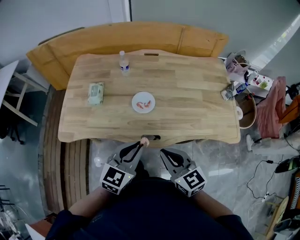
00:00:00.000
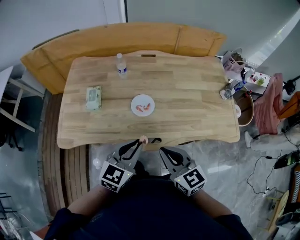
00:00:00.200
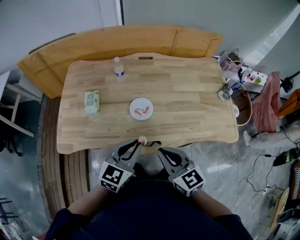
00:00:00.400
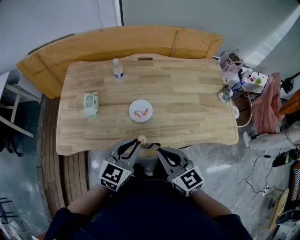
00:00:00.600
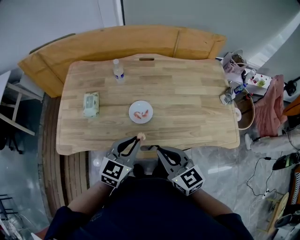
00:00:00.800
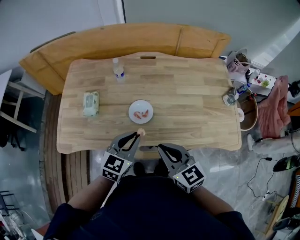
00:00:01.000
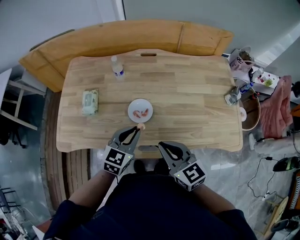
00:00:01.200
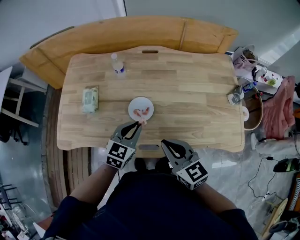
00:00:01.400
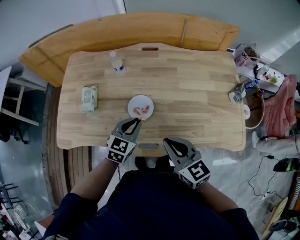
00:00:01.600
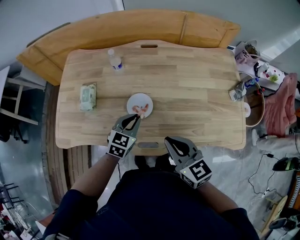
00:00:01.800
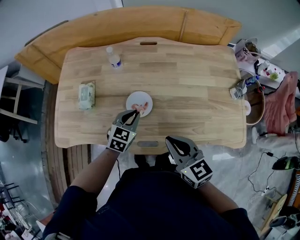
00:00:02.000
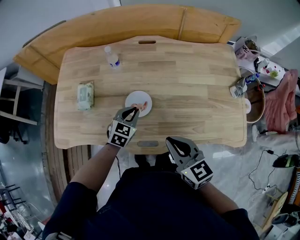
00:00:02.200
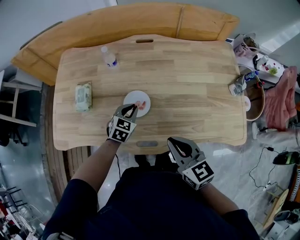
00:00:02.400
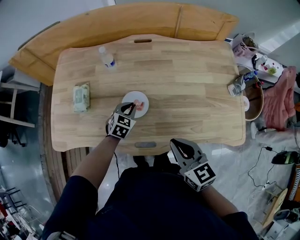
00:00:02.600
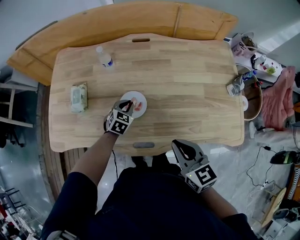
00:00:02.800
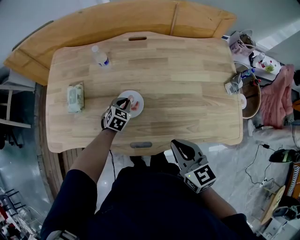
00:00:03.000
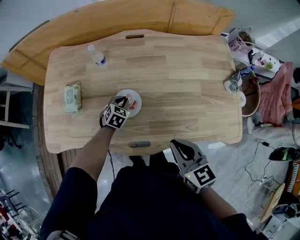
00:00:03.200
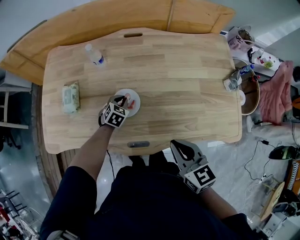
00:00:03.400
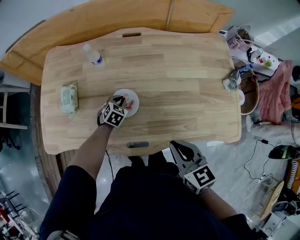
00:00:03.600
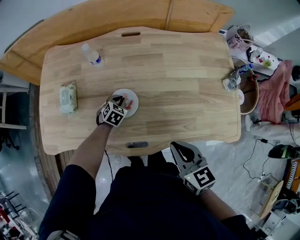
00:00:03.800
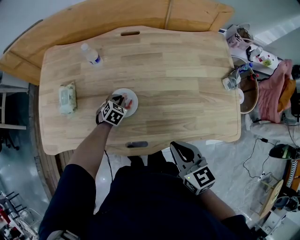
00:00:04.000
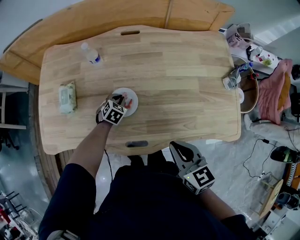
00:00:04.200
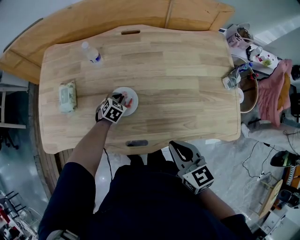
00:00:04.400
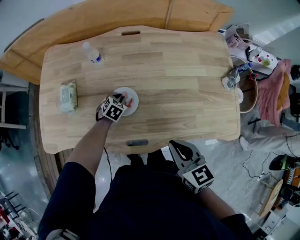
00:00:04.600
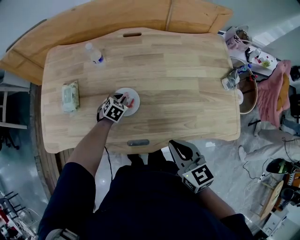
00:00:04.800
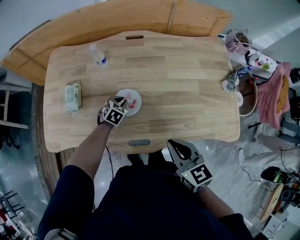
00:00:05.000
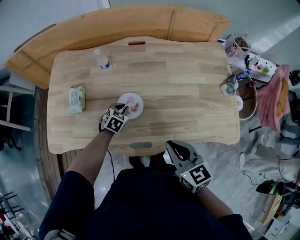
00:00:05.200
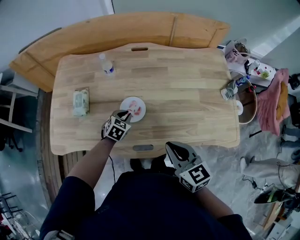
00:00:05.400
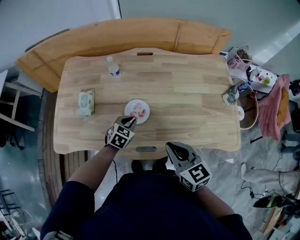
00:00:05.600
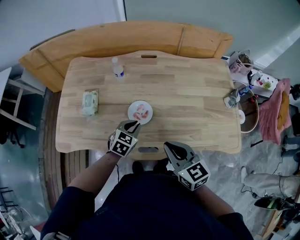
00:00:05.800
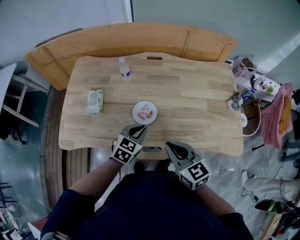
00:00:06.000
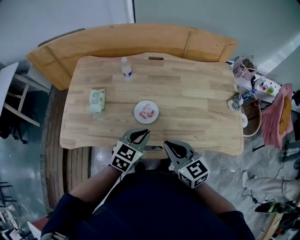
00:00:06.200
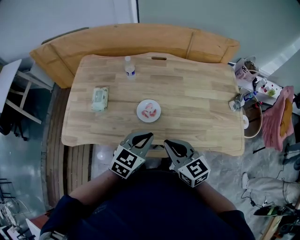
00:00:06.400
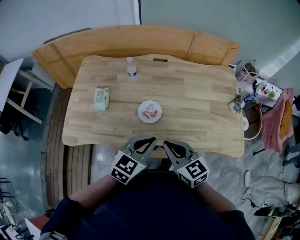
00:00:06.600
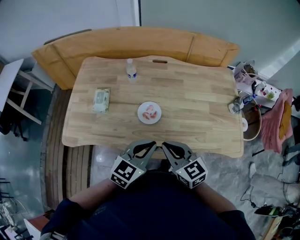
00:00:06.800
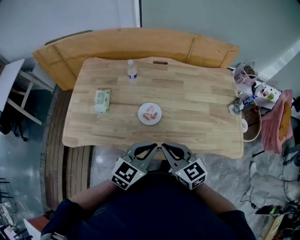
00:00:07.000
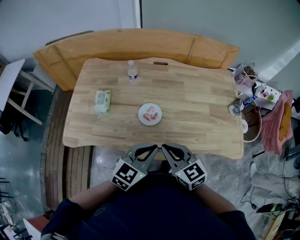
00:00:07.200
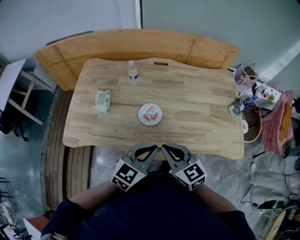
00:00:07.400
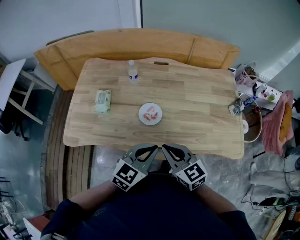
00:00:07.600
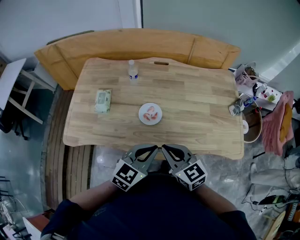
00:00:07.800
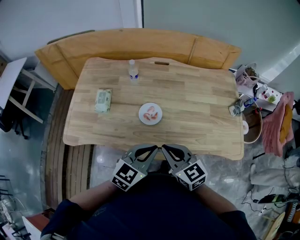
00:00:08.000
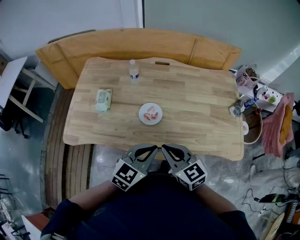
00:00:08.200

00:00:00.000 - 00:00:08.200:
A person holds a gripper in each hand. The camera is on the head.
00:00:00.000 - 00:00:01.600: The left gripper is displaced forward and downward by approximately 20 cm; the right gripper travels forward by about 15 cm.
00:00:01.600 - 00:00:03.200: The left gripper goes approximately 20 cm downward and forward, and changes its angle by roughly 20 degrees; the right gripper is displaced to the right by about 5 cm.
00:00:03.200 - 00:00:05.000: The grippers make only small movements.
00:00:05.000 - 00:00:06.600: The left gripper goes approximately 35 cm upward and backward, and tilts its fingers about 30 degrees upward; the right gripper is displaced to the left by some 10 cm.
00:00:06.600 - 00:00:08.200: There are only small adjustments of the grippers.

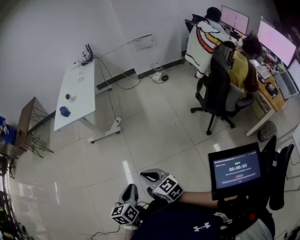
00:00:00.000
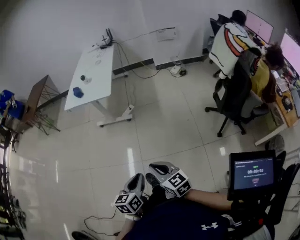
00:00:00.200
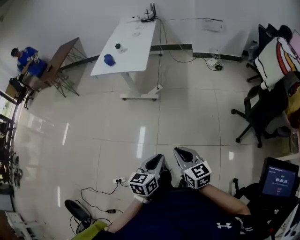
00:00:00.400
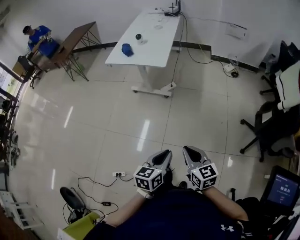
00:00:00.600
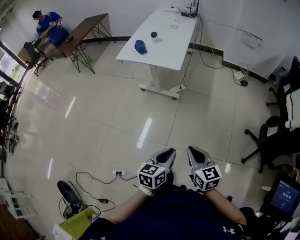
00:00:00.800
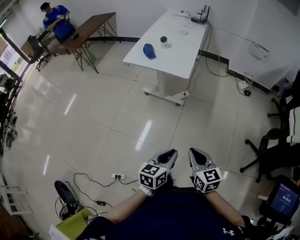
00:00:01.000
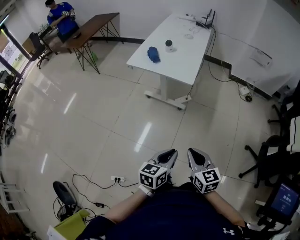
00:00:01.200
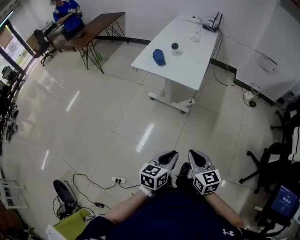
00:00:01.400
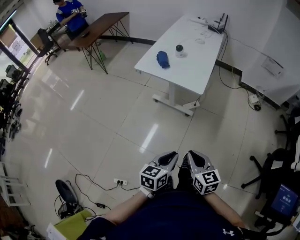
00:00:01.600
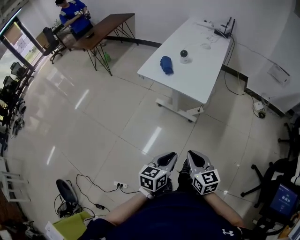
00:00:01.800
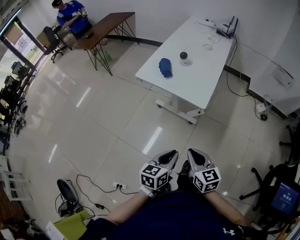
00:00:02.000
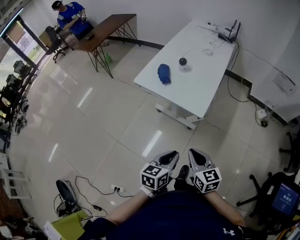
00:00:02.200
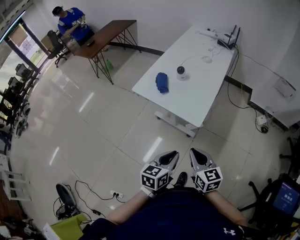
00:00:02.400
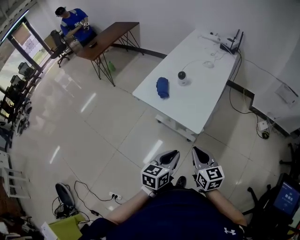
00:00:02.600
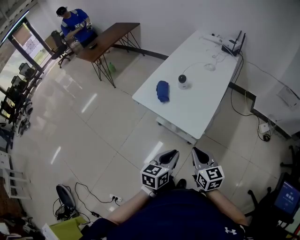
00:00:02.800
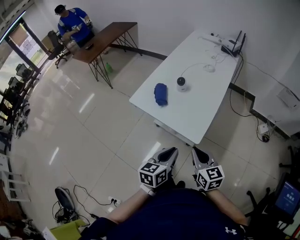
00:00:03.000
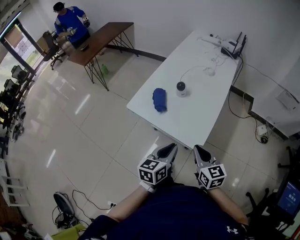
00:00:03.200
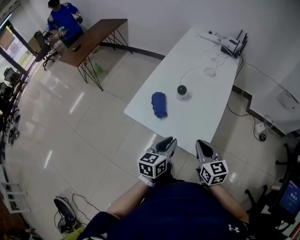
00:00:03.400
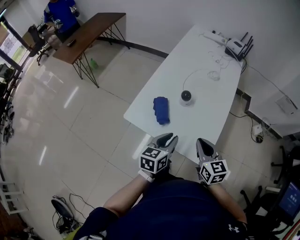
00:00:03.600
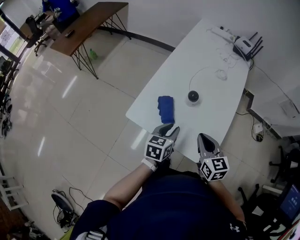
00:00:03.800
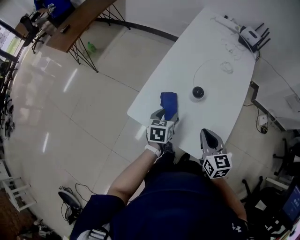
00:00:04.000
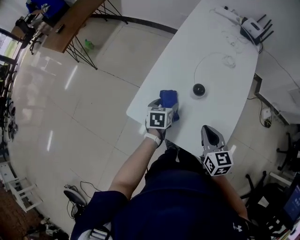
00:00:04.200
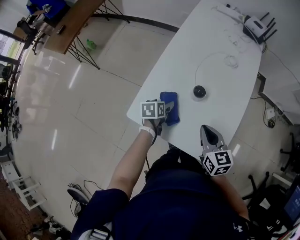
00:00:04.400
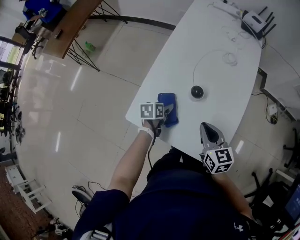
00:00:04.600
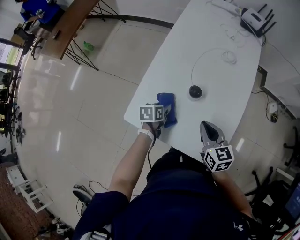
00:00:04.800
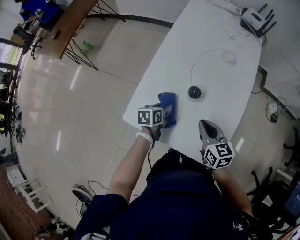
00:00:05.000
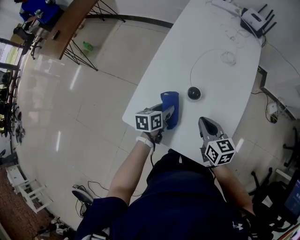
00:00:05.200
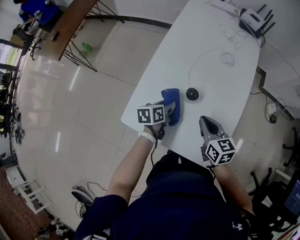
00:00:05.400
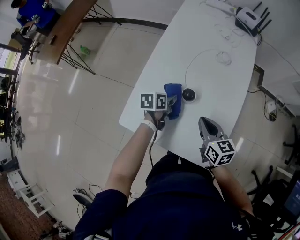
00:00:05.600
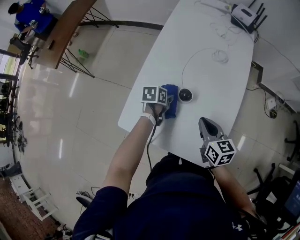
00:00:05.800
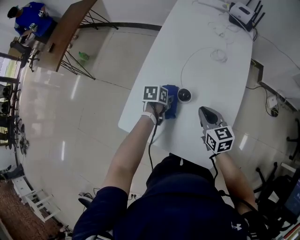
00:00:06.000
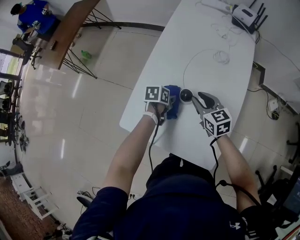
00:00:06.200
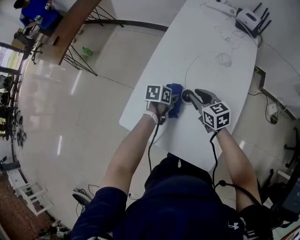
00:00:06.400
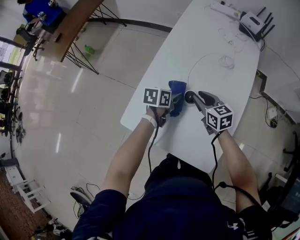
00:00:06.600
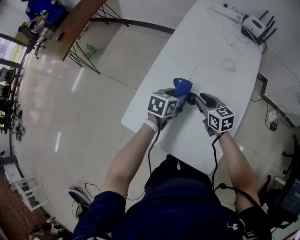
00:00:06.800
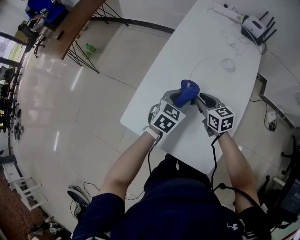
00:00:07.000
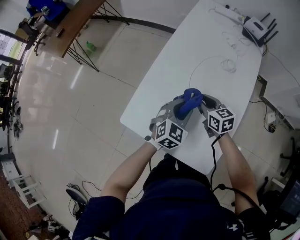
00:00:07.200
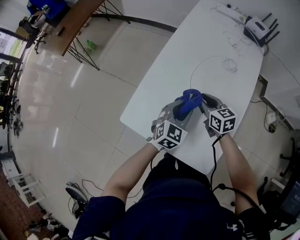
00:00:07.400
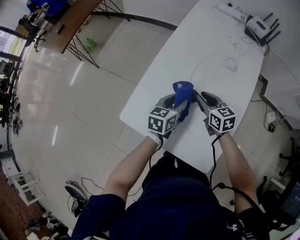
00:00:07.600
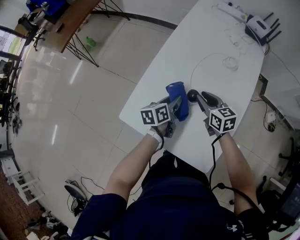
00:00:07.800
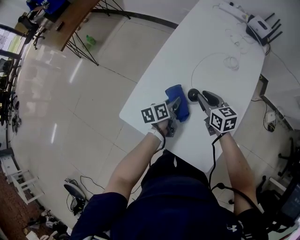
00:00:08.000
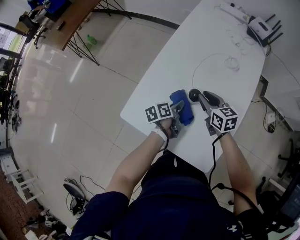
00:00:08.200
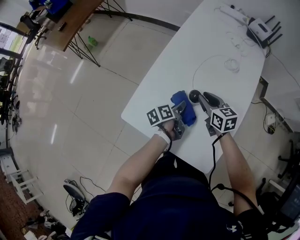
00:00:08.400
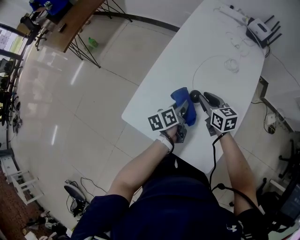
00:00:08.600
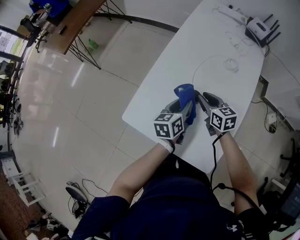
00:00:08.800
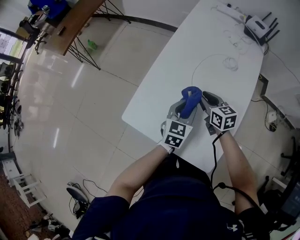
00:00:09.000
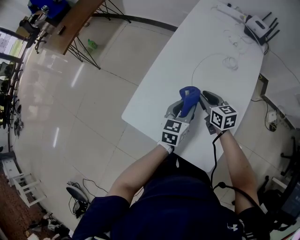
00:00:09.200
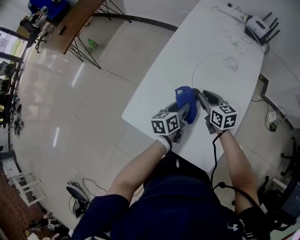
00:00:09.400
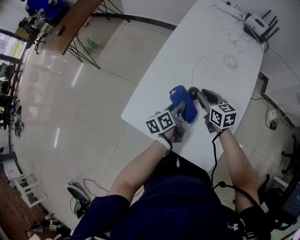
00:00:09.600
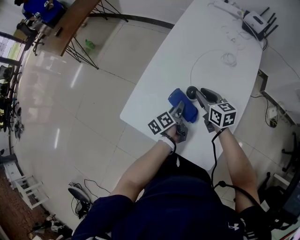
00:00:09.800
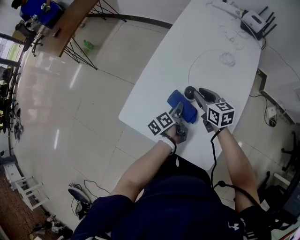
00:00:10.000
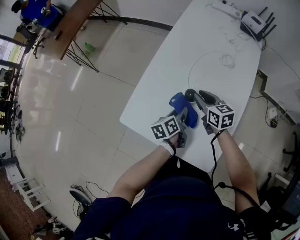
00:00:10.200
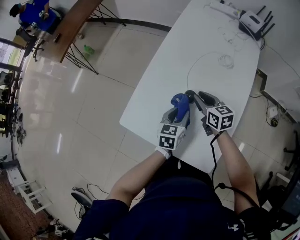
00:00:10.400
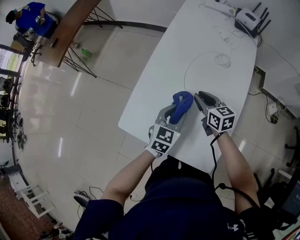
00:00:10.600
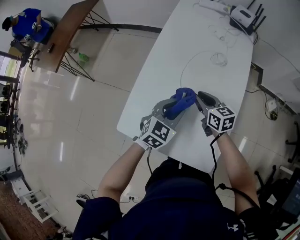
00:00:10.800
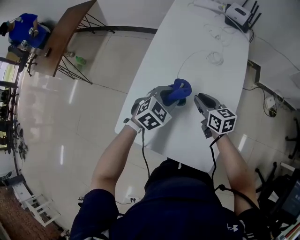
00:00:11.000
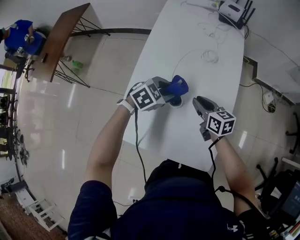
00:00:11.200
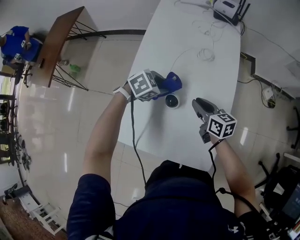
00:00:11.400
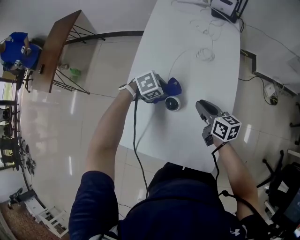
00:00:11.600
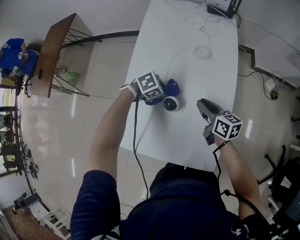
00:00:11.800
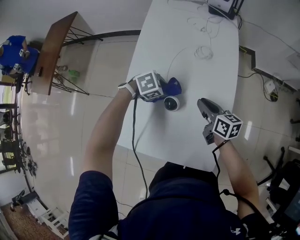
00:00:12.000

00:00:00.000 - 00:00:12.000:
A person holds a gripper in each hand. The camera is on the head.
00:00:00.000 - 00:00:01.600: The grippers both shift forward and to the left by about 35 cm.
00:00:01.600 - 00:00:03.000: Both grippers move forward, some 30 cm.
00:00:03.000 - 00:00:04.400: The right gripper is displaced forward by about 25 cm; the left gripper is displaced forward, downward and to the left by about 50 cm, swivels some 30 degrees, and opens.
00:00:04.400 - 00:00:06.000: The right gripper is displaced forward by approximately 10 cm; the left gripper heads to the right and forward, covering about 10 cm, and closes up.
00:00:06.000 - 00:00:07.600: The right gripper moves forward, approximately 5 cm, while the left gripper moves upward, approximately 10 cm, and swivels roughly 40 degrees.
00:00:07.600 - 00:00:09.000: The left gripper goes downward and returns, roughly 10 cm each way.
00:00:09.000 - 00:00:10.400: The left gripper reaches some 10 cm downward, then returns.
00:00:10.400 - 00:00:12.000: The left gripper moves some 5 cm downward and comes back, and turns by some 80 degrees. Meanwhile the right gripper changes place by roughly 10 cm, and changes its angle by roughly 30 degrees.

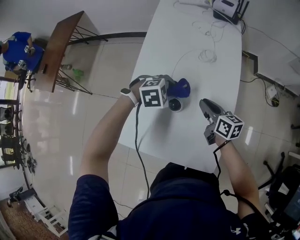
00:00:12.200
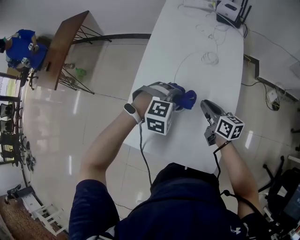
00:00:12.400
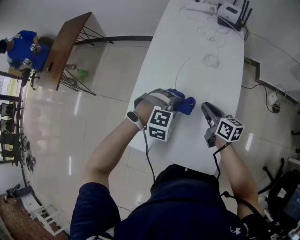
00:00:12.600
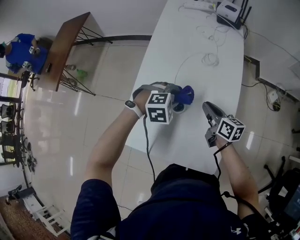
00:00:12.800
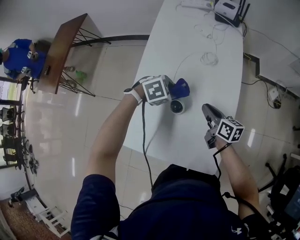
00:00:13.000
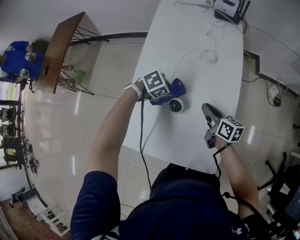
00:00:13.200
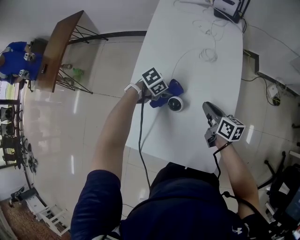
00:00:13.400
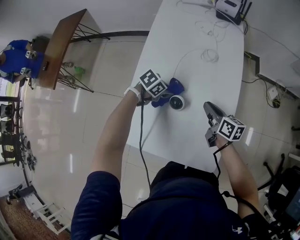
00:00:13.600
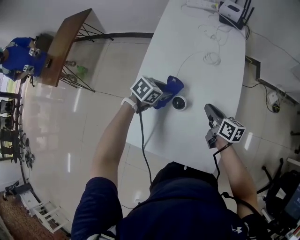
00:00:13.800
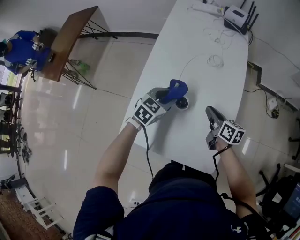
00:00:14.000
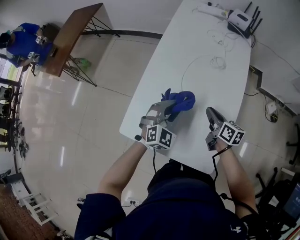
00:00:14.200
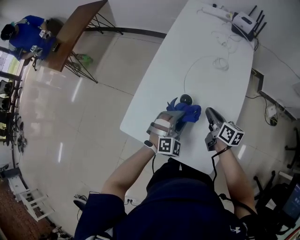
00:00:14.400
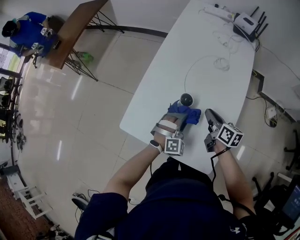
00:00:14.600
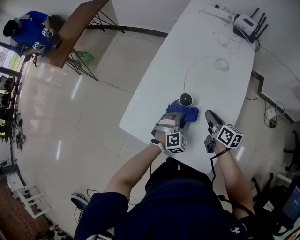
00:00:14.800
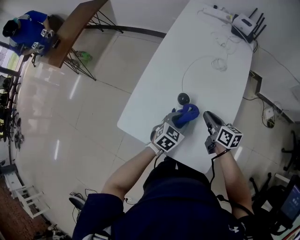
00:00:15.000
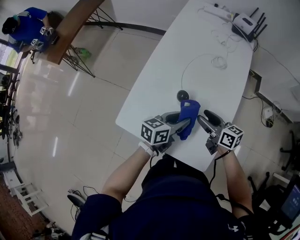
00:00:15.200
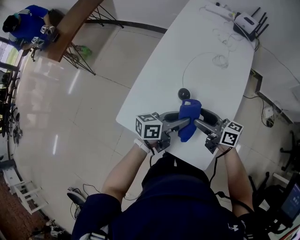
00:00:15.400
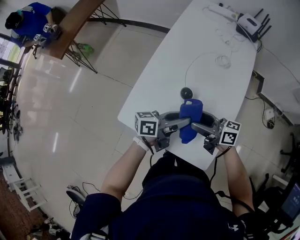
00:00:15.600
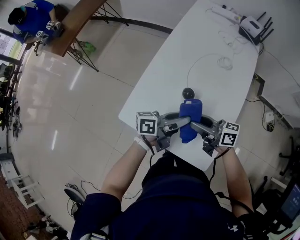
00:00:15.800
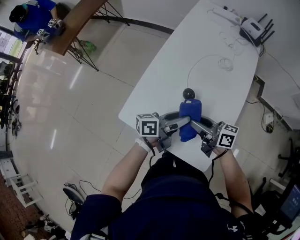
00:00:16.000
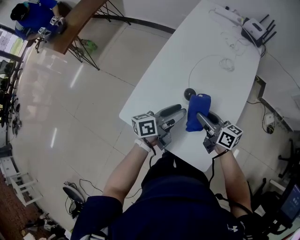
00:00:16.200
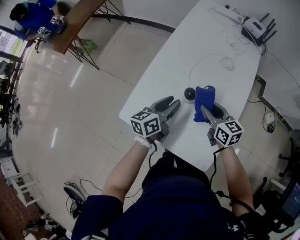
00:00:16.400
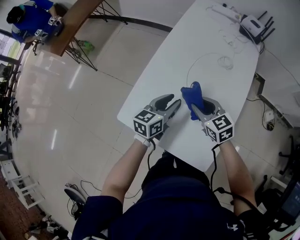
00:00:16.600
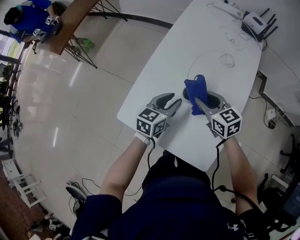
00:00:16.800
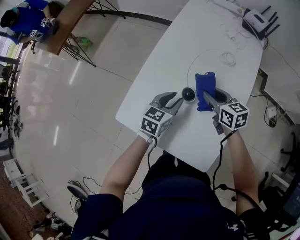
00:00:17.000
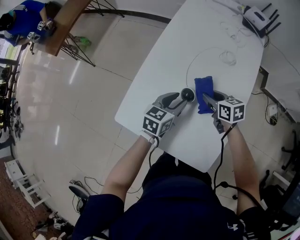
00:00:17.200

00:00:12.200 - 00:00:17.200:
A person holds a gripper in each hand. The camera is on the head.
00:00:12.200 - 00:00:13.800: The left gripper reaches approximately 10 cm downward, then returns, and rolls counterclockwise, seen from behind, by approximately 40 degrees.
00:00:13.800 - 00:00:15.600: The left gripper moves up and down over some 15 cm, changing direction 2 times, and tilts its fingers some 50 degrees upward. The right gripper ends up about 15 cm from where it was, turns by roughly 40 degrees, and opens.
00:00:15.600 - 00:00:17.200: The left gripper ends up some 10 cm from where it was, and changes its angle by about 50 degrees. The right gripper moves some 15 cm, angles its fingers downward, by about 40 degrees, and closes.
